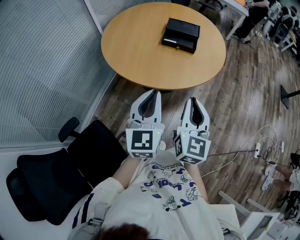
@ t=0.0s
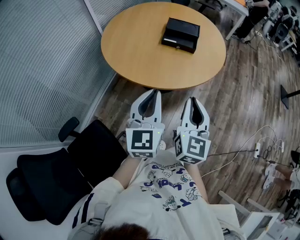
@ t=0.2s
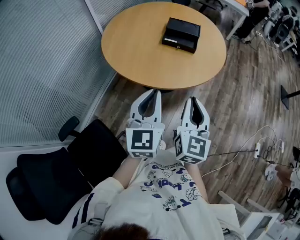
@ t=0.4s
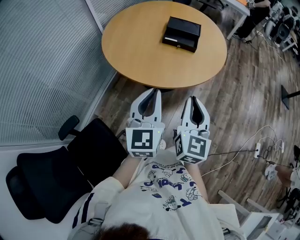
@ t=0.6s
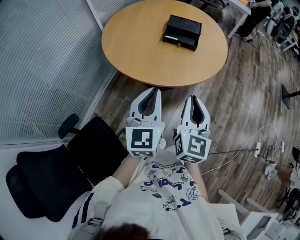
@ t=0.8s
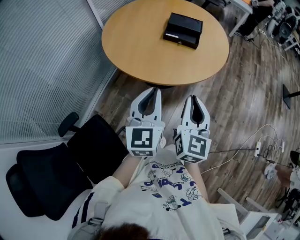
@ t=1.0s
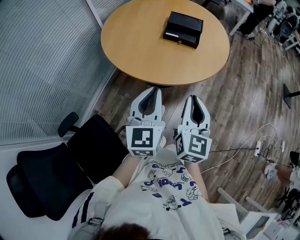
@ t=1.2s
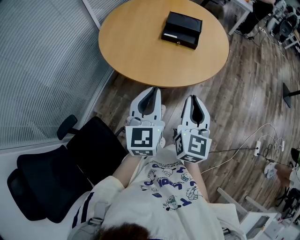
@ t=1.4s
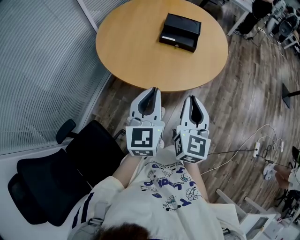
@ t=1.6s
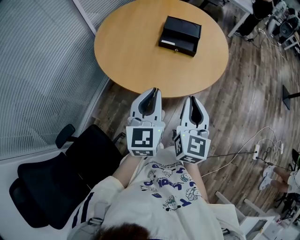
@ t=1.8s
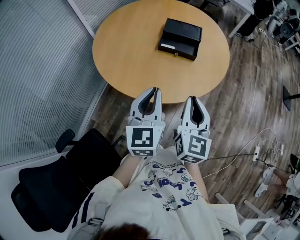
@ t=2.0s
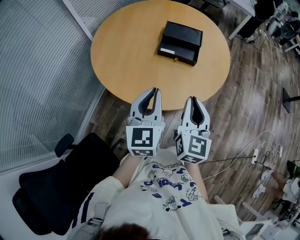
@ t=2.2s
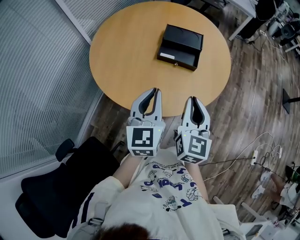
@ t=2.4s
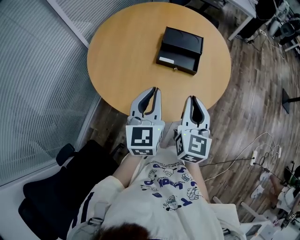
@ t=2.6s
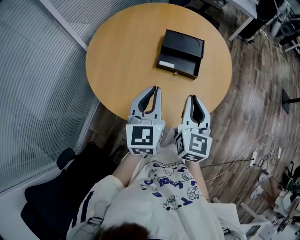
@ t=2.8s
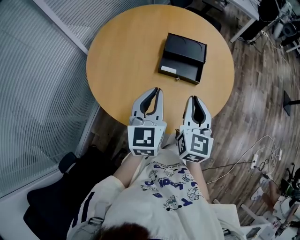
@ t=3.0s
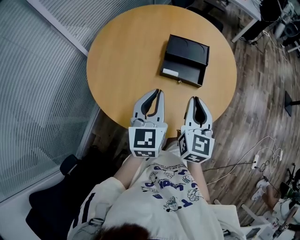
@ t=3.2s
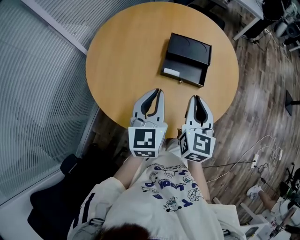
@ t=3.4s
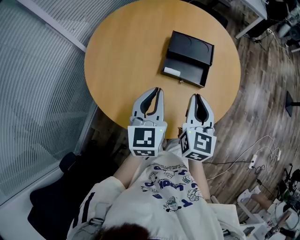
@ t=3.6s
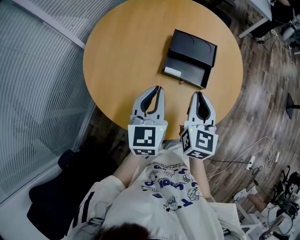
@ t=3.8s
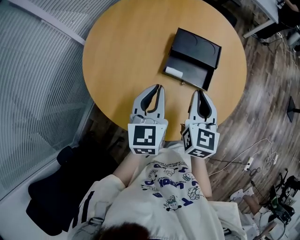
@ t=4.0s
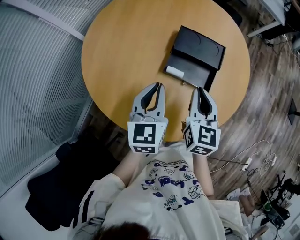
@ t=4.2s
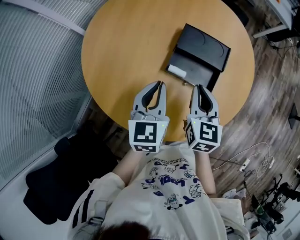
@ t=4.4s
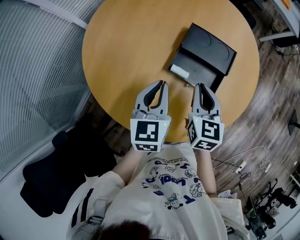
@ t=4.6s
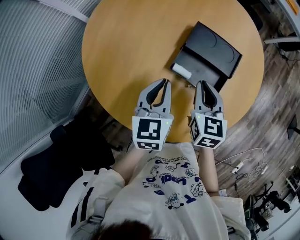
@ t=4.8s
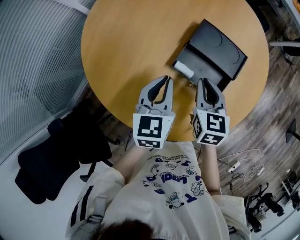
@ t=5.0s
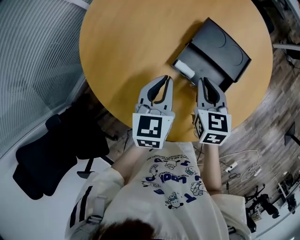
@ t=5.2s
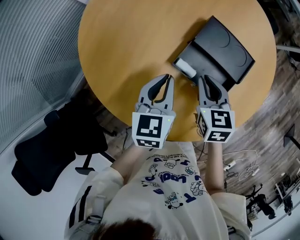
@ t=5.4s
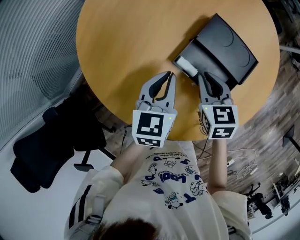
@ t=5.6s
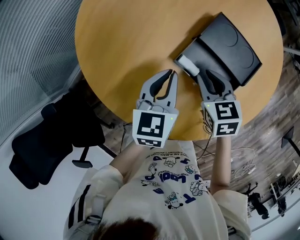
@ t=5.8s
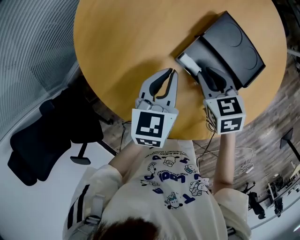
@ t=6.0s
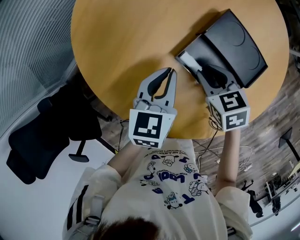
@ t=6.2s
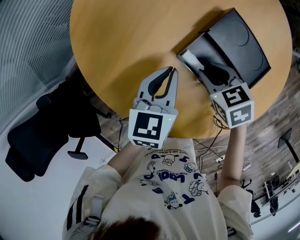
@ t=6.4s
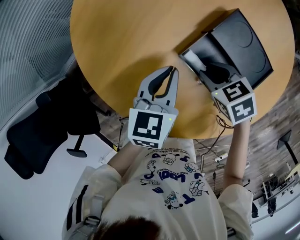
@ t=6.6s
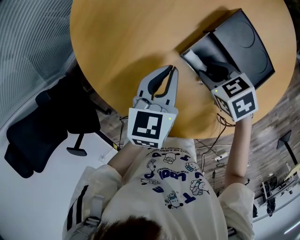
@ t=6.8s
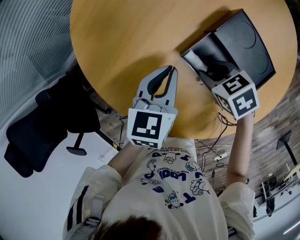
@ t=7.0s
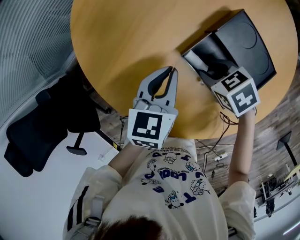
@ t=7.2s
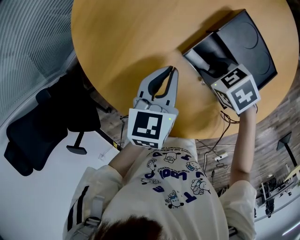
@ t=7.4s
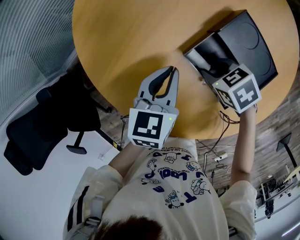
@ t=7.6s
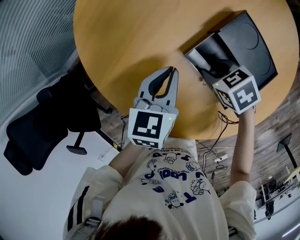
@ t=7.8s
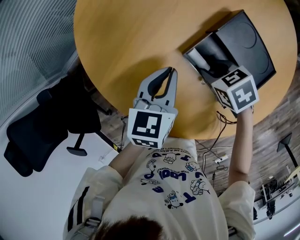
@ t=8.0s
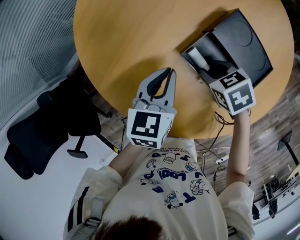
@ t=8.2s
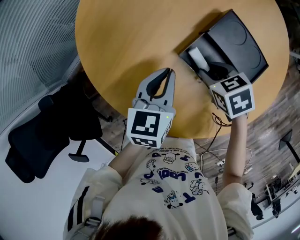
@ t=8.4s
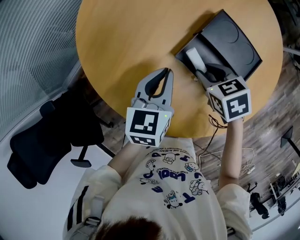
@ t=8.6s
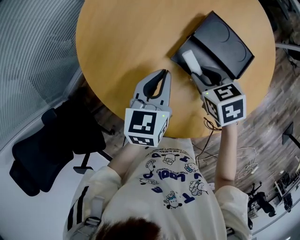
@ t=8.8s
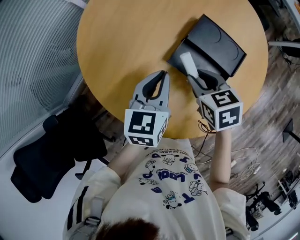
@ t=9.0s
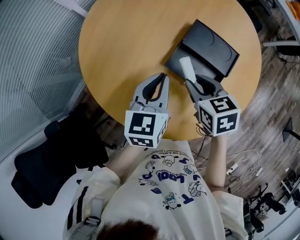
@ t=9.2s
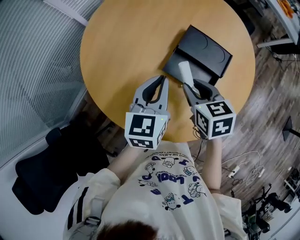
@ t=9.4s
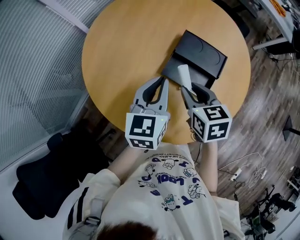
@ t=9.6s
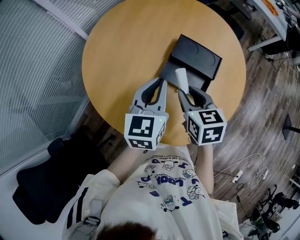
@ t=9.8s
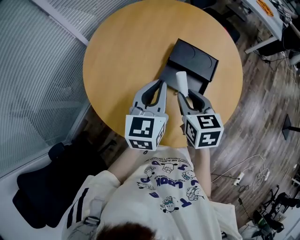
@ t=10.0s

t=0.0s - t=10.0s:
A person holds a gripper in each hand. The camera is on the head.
t=0.0s - t=1.4s: The grippers move only a little.
t=1.4s - t=2.8s: The grippers both shift forward by approximately 25 cm.
t=2.8s - t=4.2s: The left gripper heads forward and downward, covering about 15 cm, while the right gripper travels forward by some 15 cm.
t=4.2s - t=5.8s: Both grippers travel together downward, some 10 cm. The right gripper turns by roughly 50 degrees.
t=5.8s - t=7.2s: The right gripper heads downward, covering approximately 5 cm, and turns by about 40 degrees.
t=7.2s - t=8.6s: The right gripper is displaced upward by approximately 5 cm, and changes its angle by approximately 20 degrees.
t=8.6s - t=10.0s: Both grippers travel together upward, some 15 cm. The right gripper swivels roughly 40 degrees; the left gripper rotates about 20 degrees.

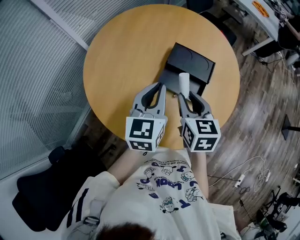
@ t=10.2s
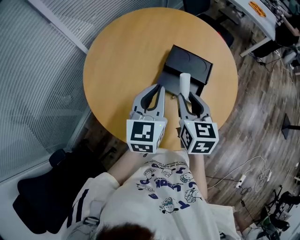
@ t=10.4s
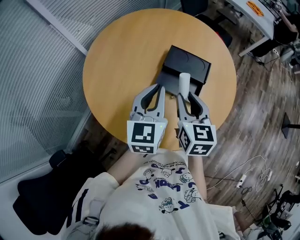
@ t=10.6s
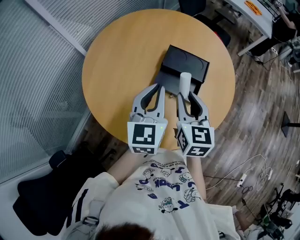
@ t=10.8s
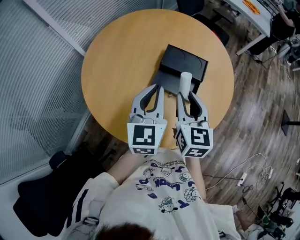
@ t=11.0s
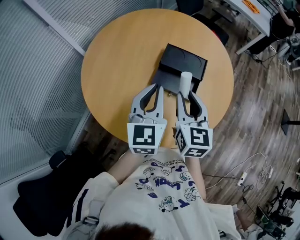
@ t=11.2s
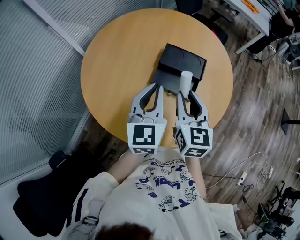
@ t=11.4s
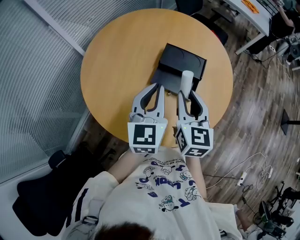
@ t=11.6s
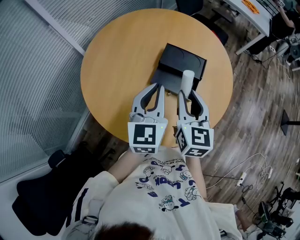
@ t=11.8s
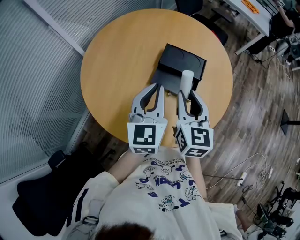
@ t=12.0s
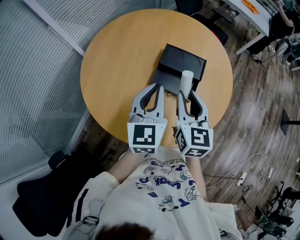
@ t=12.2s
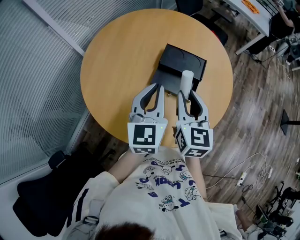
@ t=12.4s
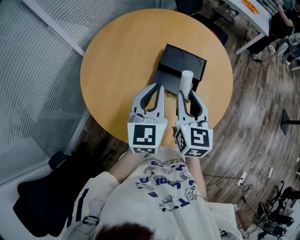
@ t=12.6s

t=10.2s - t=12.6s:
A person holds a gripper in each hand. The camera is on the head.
t=10.2s - t=11.4s: The grippers move only a little.
t=11.4s - t=12.6s: Neither gripper changes place.

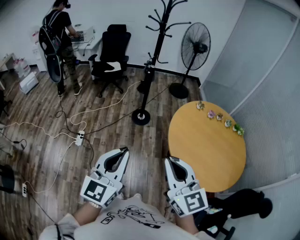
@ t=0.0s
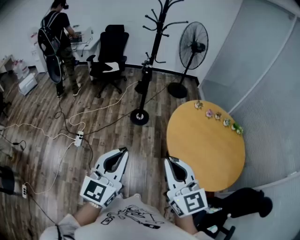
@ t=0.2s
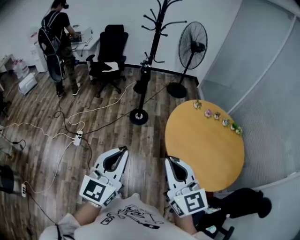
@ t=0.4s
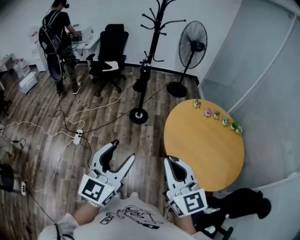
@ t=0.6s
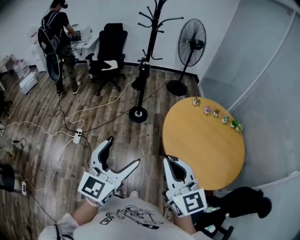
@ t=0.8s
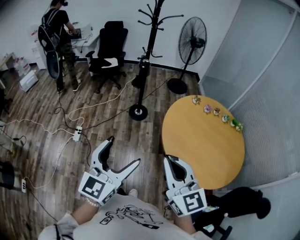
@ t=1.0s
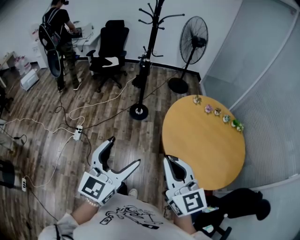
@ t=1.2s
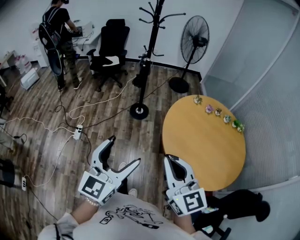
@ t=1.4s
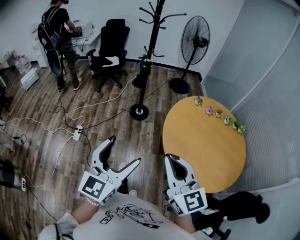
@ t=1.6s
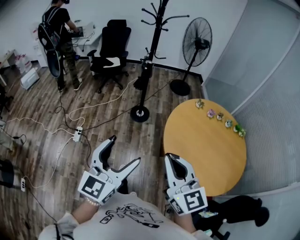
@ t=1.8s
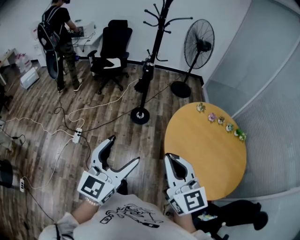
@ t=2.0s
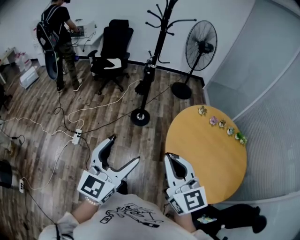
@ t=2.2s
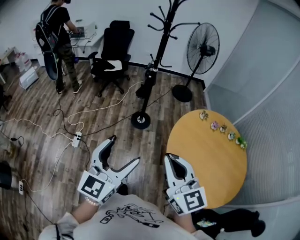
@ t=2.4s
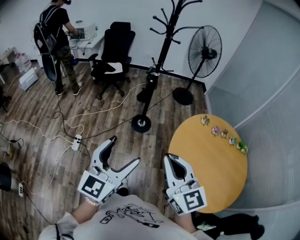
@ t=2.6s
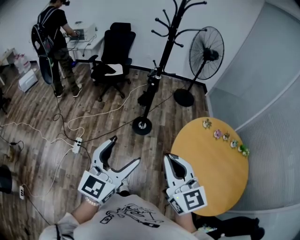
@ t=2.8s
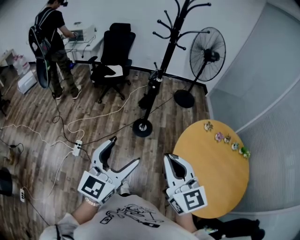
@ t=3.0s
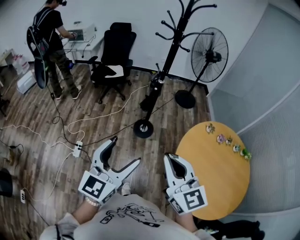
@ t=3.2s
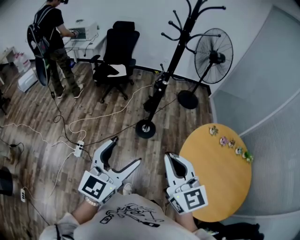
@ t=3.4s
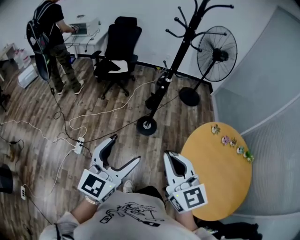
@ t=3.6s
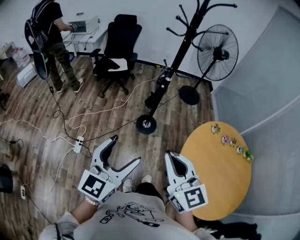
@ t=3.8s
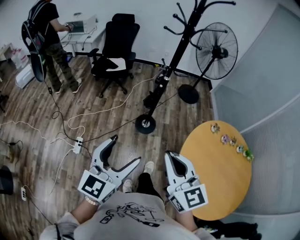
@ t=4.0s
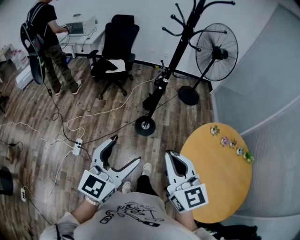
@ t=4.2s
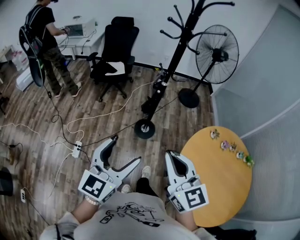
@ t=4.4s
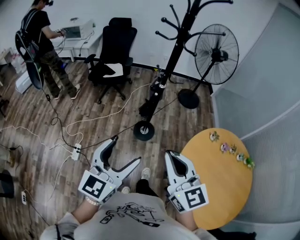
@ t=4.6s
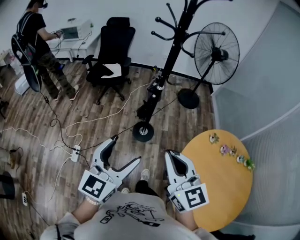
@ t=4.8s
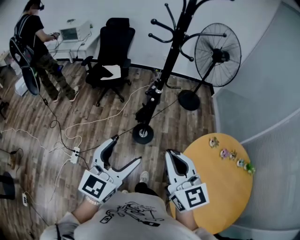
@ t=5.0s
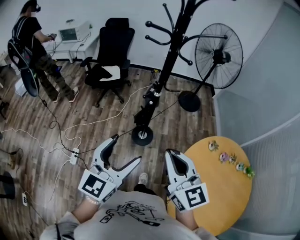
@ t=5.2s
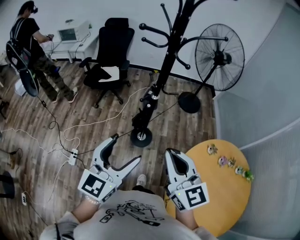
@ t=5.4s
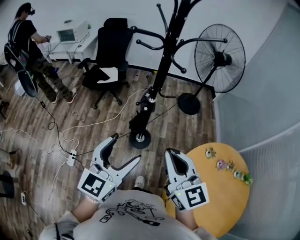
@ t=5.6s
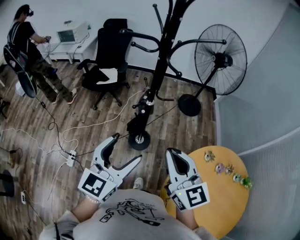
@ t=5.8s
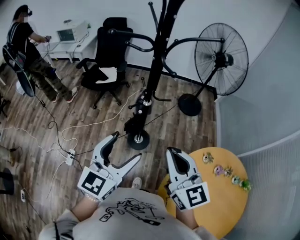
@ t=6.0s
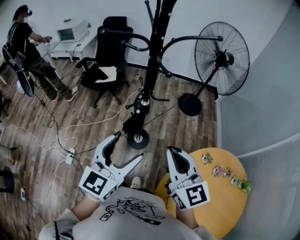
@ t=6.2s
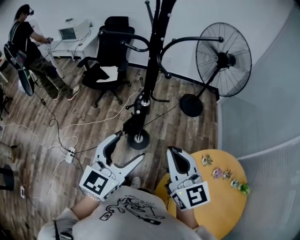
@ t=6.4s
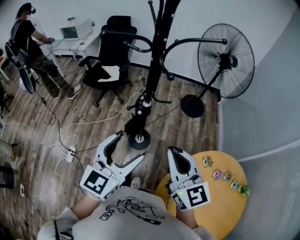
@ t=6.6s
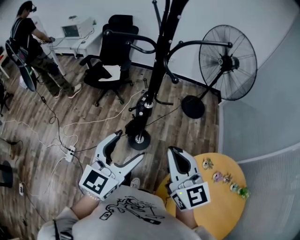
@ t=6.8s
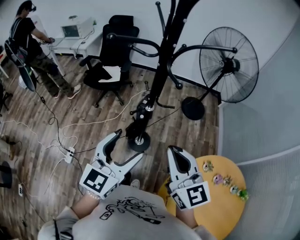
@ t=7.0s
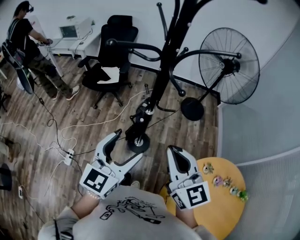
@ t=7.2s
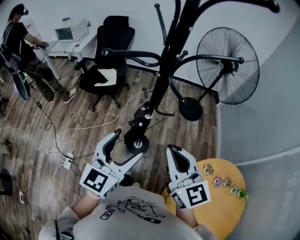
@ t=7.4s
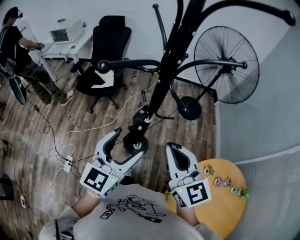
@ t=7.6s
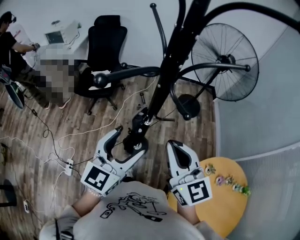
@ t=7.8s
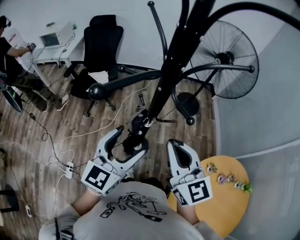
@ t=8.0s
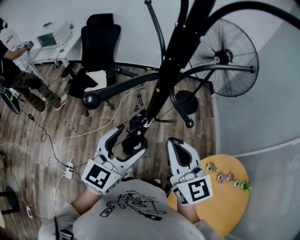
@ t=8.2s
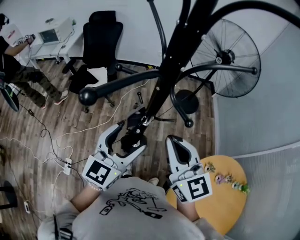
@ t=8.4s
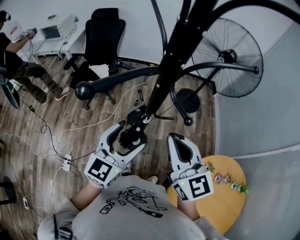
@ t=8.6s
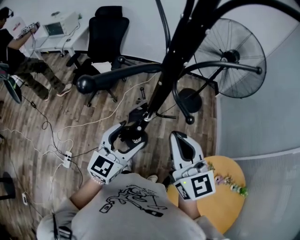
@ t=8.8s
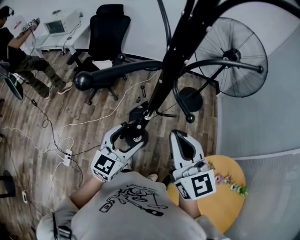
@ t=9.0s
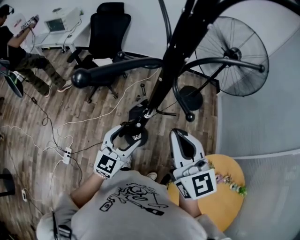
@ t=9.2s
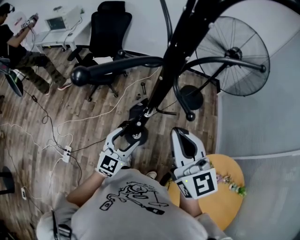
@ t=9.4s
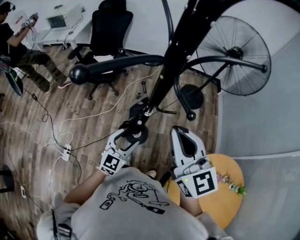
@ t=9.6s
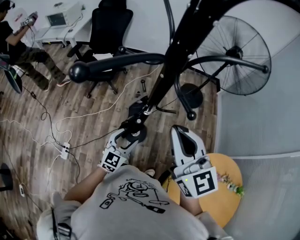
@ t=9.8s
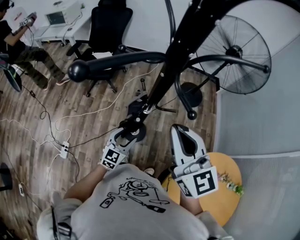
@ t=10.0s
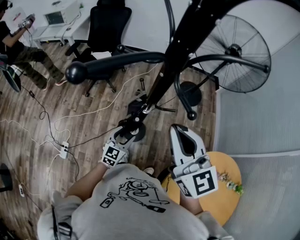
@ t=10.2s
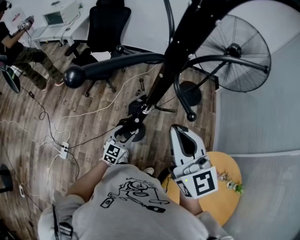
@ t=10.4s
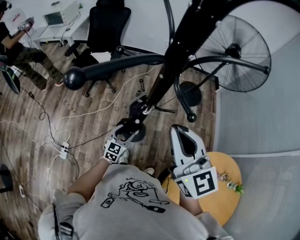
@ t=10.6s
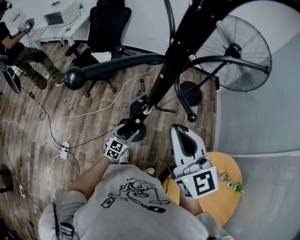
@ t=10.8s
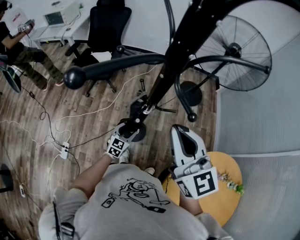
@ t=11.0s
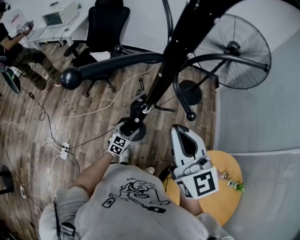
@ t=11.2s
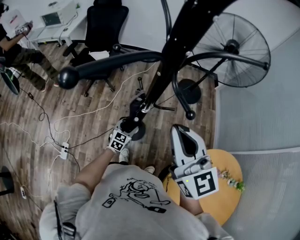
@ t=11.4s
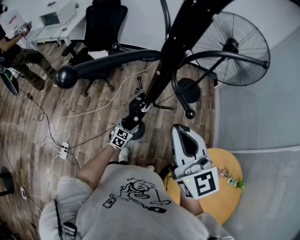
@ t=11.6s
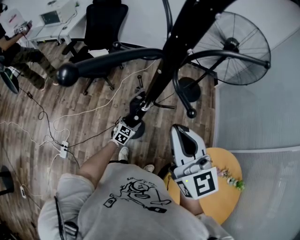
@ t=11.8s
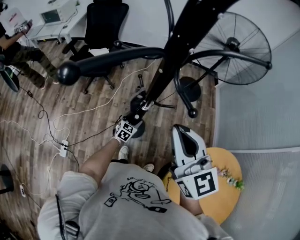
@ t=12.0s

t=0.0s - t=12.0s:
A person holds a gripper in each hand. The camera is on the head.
t=0.0s - t=1.6s: Both grippers travel together to the right, approximately 5 cm. The left gripper opens up.
t=1.6s - t=3.0s: Both grippers travel together forward and to the left, roughly 25 cm.
t=3.0s - t=4.4s: Both grippers move forward, approximately 10 cm.
t=4.4s - t=6.0s: Both grippers move forward and to the right, roughly 25 cm.
t=6.0s - t=7.6s: The grippers both shift forward by about 15 cm.
t=7.6s - t=9.0s: The left gripper travels downward and forward by roughly 10 cm; the right gripper travels forward by about 5 cm.
t=9.0s - t=10.4s: The left gripper goes some 20 cm downward.
t=10.4s - t=12.0s: The left gripper is displaced downward and forward by approximately 15 cm.
